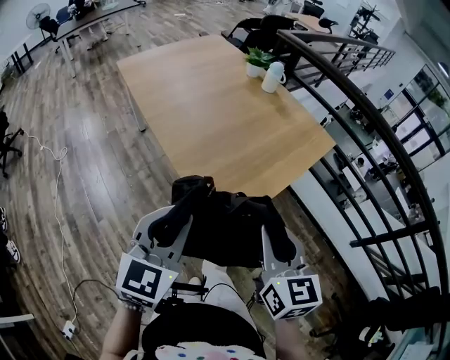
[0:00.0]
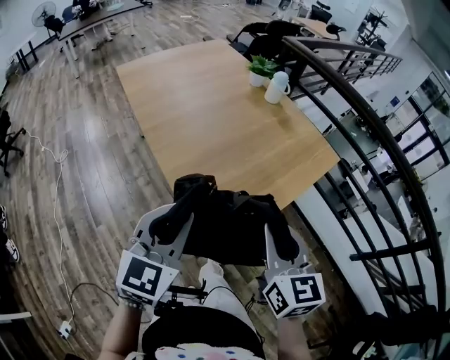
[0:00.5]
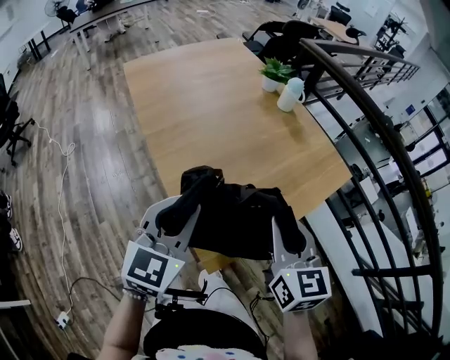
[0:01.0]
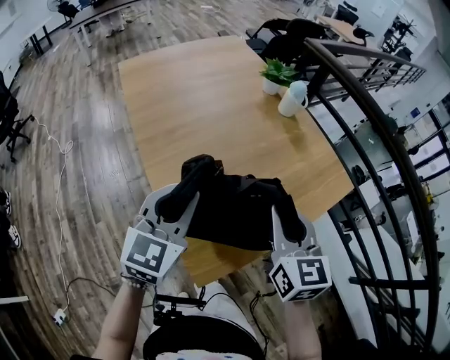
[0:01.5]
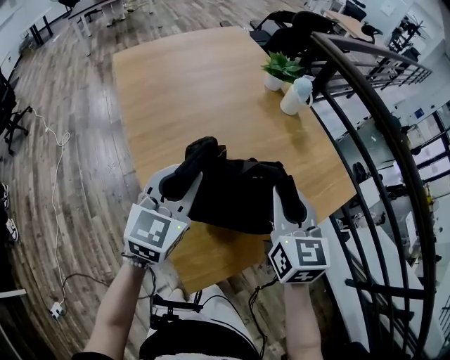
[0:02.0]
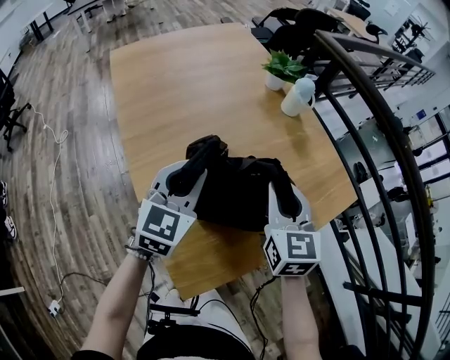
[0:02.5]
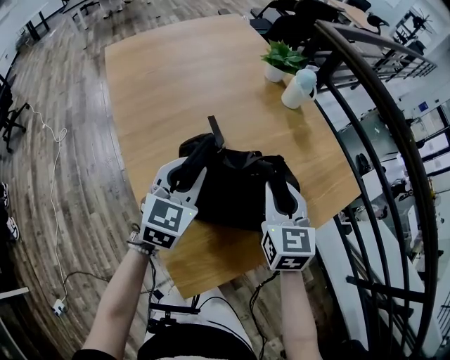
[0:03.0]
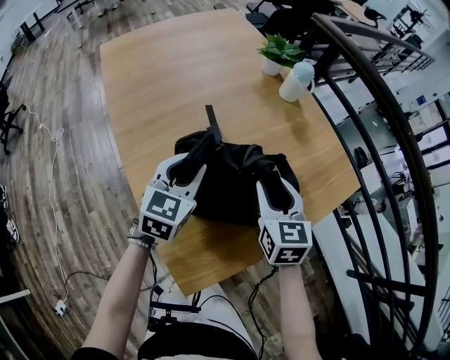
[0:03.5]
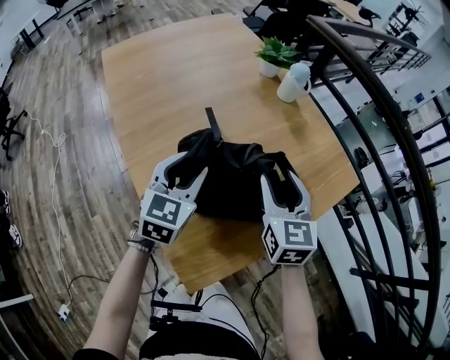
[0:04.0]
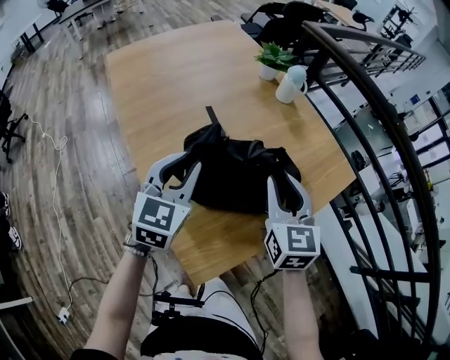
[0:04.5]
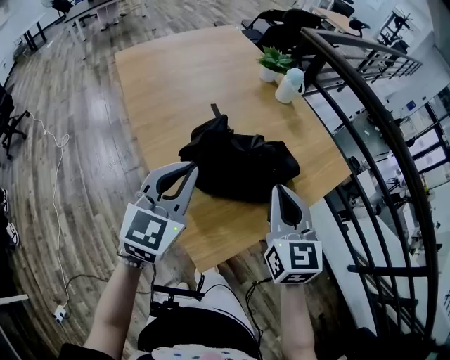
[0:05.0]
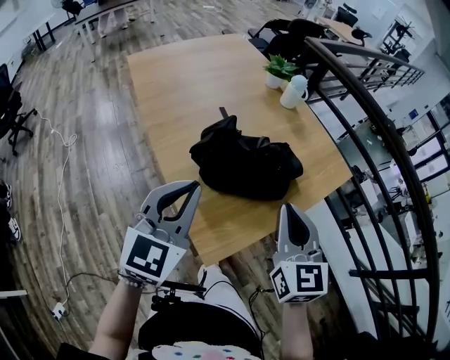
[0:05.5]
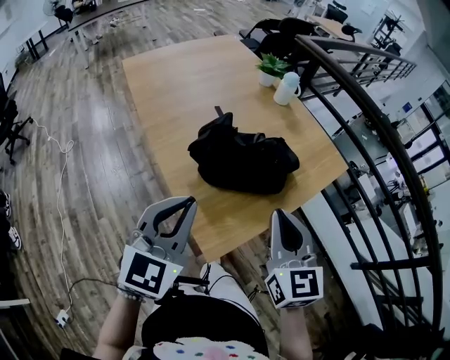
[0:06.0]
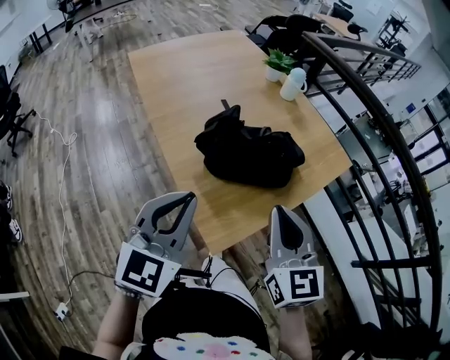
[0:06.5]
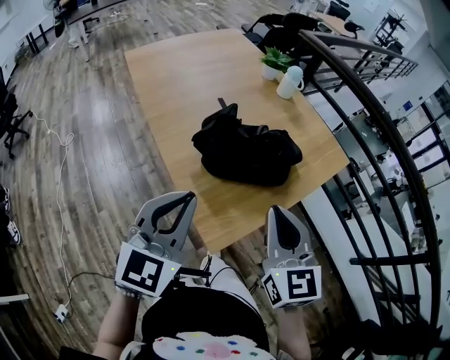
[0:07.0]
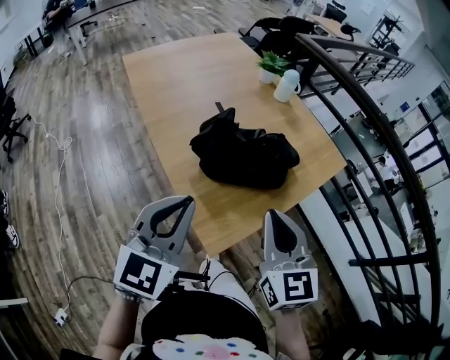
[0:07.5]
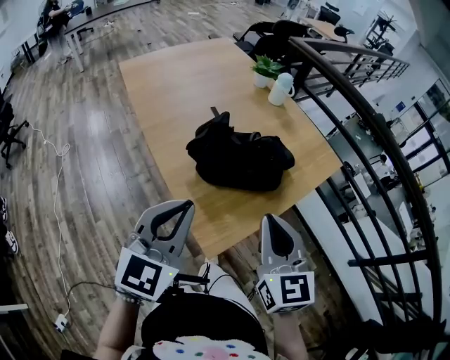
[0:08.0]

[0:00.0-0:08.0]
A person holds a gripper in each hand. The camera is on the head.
0:00.0 to 0:02.0: The two grippers go about 35 cm forward.
0:02.0 to 0:04.0: The grippers both shift downward by approximately 5 cm. The right gripper opens. Meanwhile the left gripper opens up.
0:04.0 to 0:06.0: Both grippers move backward and upward, some 30 cm. The left gripper closes up, while the right gripper closes up.
0:06.0 to 0:08.0: The grippers make only small movements.

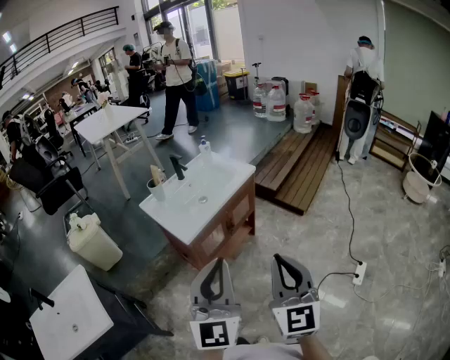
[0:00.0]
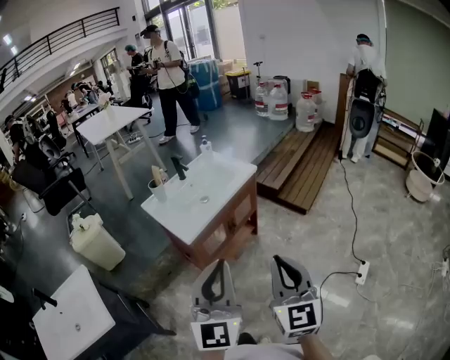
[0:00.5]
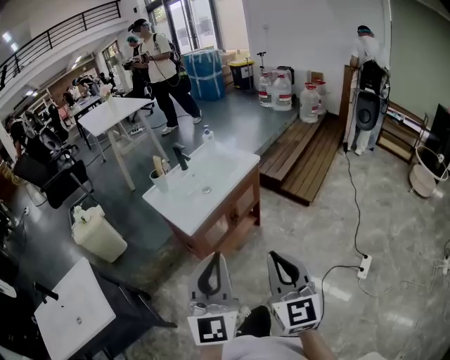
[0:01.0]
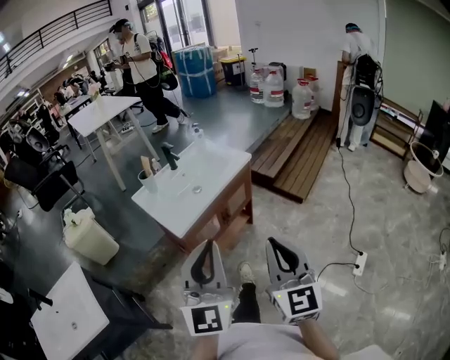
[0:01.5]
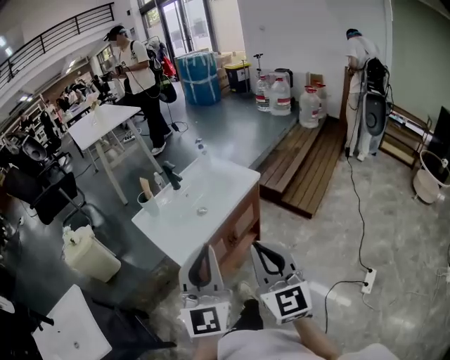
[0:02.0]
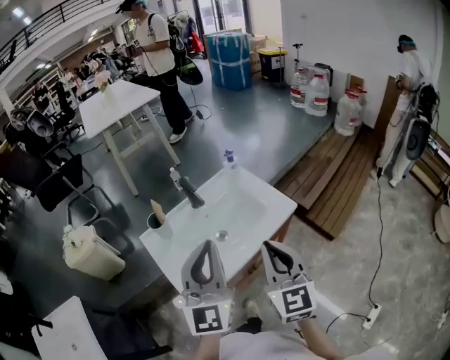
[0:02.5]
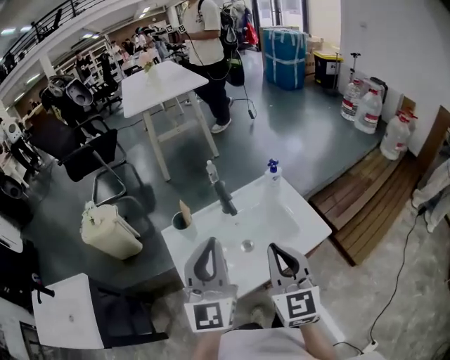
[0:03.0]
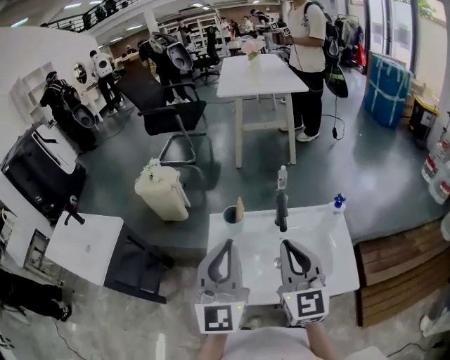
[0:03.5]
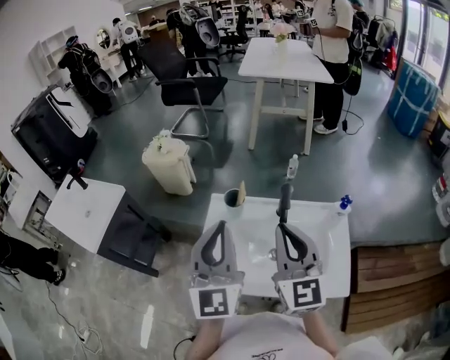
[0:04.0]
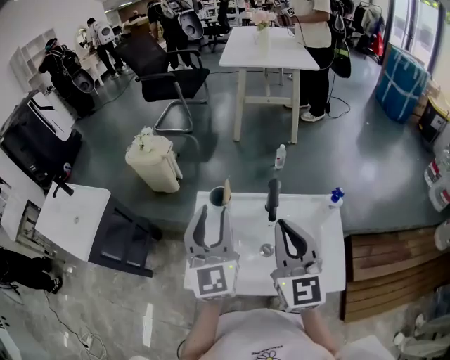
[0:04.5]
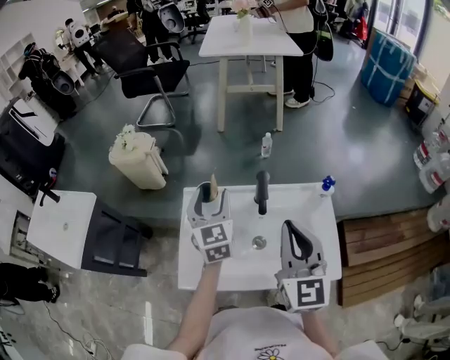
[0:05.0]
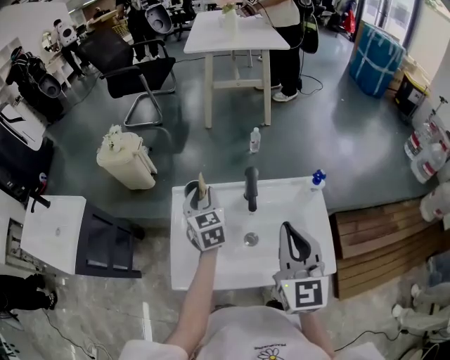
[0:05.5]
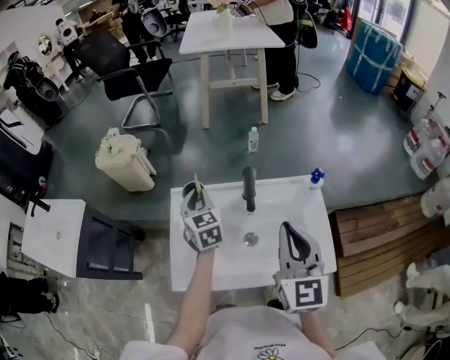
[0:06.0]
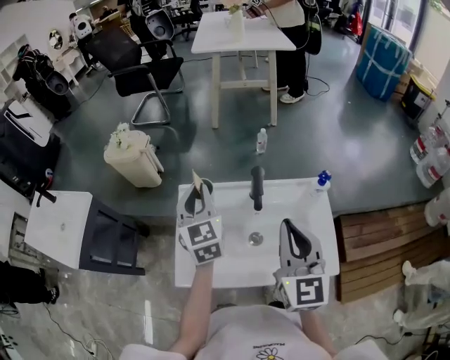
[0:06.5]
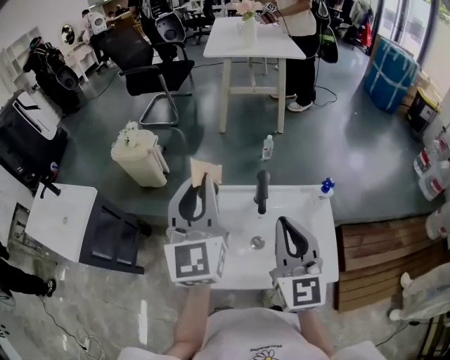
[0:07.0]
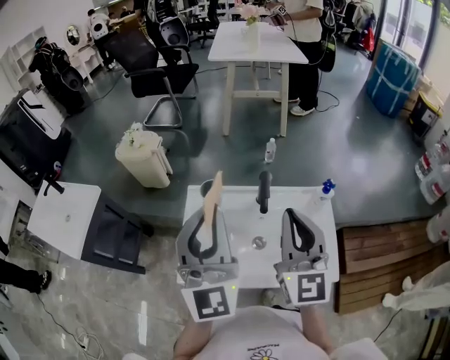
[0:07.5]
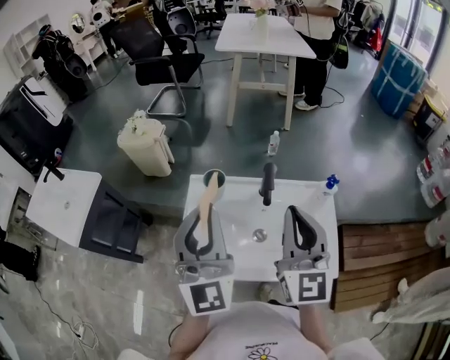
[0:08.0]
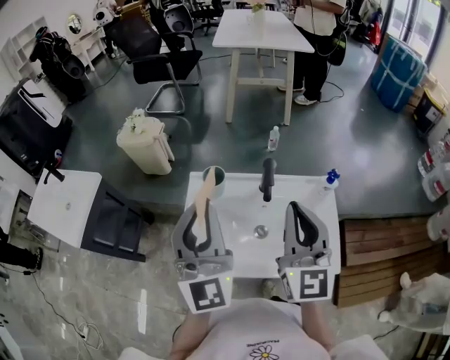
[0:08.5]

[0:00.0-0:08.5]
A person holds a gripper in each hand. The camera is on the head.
0:00.0 to 0:02.0: Both grippers move forward, approximately 20 cm.
0:02.0 to 0:04.0: The left gripper ends up about 35 cm from where it was, and rotates about 60 degrees; the right gripper ends up some 40 cm from where it was, and rotates some 50 degrees.
0:04.0 to 0:06.5: The right gripper moves to the right, about 10 cm. The left gripper heads forward and downward, covering about 20 cm, turns by roughly 20 degrees, and opens, then closes once more.
0:06.5 to 0:08.5: The right gripper shifts by roughly 5 cm, while the left gripper heads backward and upward, covering about 20 cm, and rotates about 30 degrees.

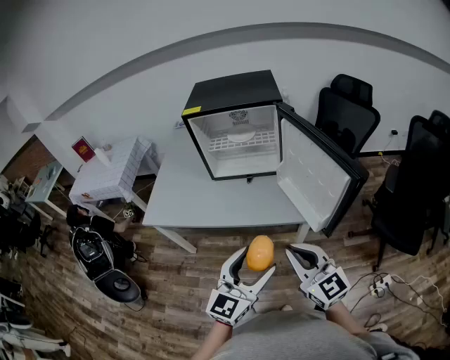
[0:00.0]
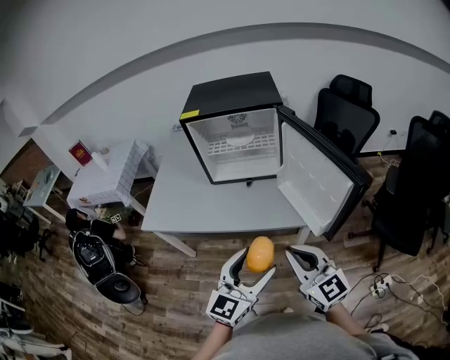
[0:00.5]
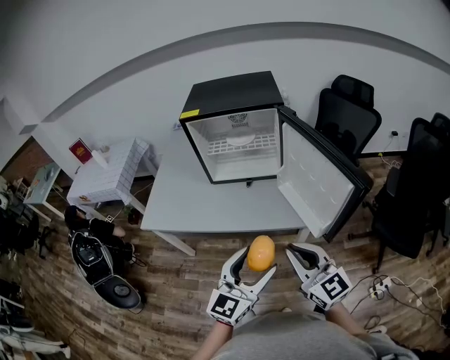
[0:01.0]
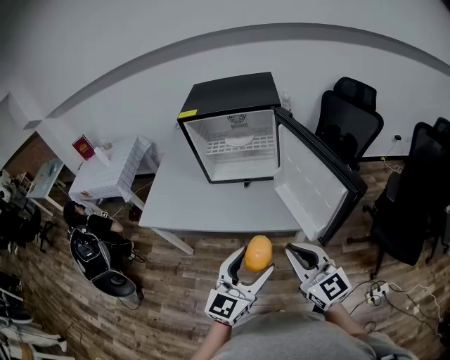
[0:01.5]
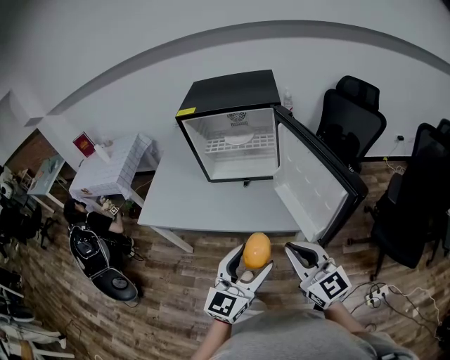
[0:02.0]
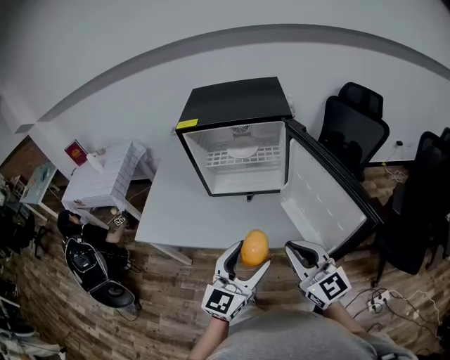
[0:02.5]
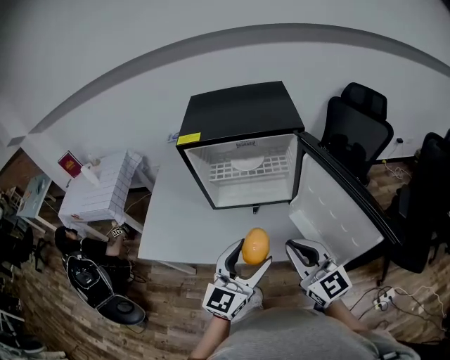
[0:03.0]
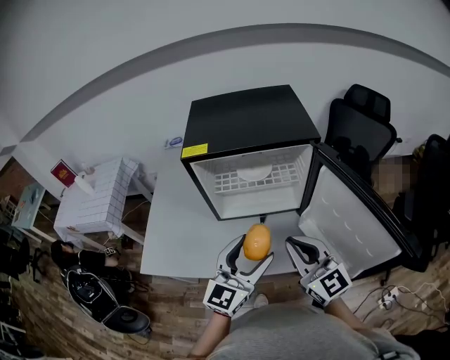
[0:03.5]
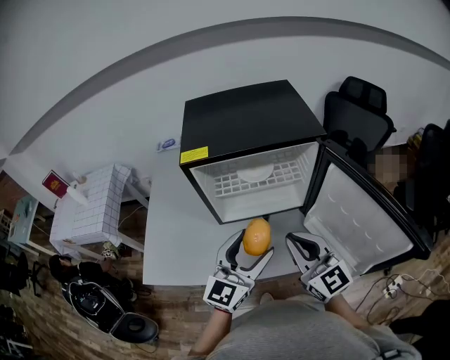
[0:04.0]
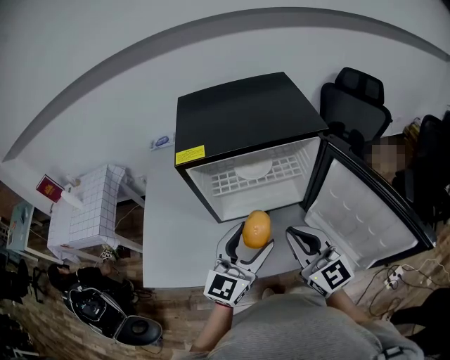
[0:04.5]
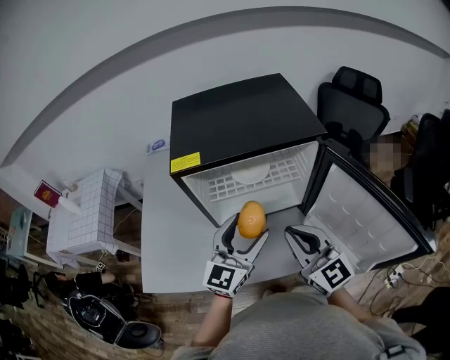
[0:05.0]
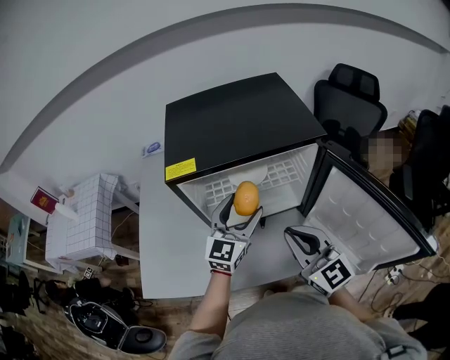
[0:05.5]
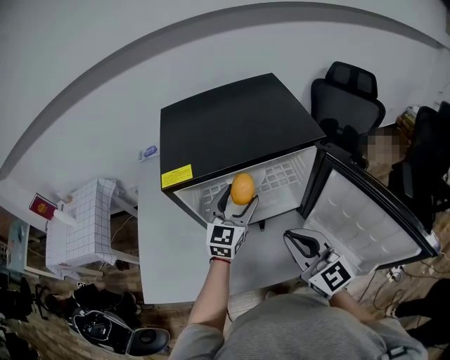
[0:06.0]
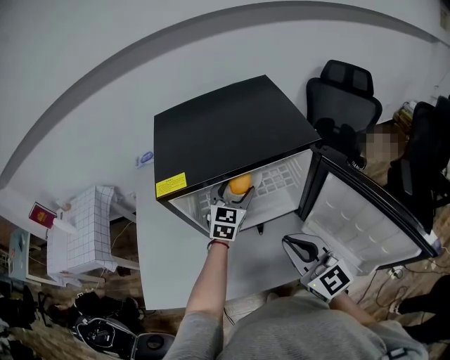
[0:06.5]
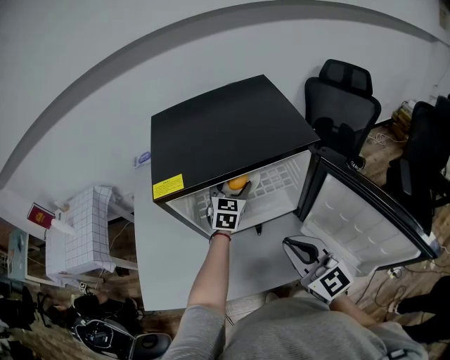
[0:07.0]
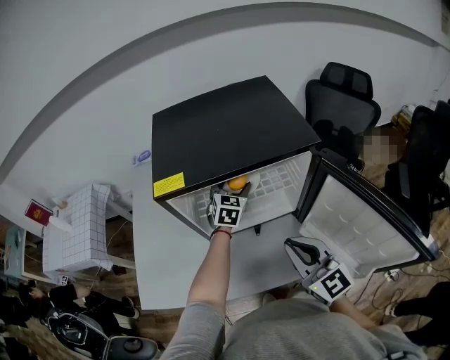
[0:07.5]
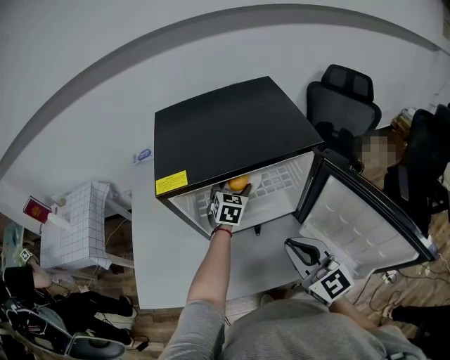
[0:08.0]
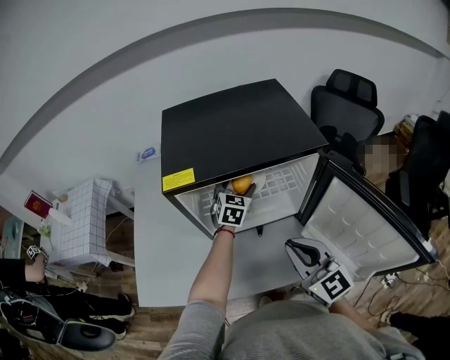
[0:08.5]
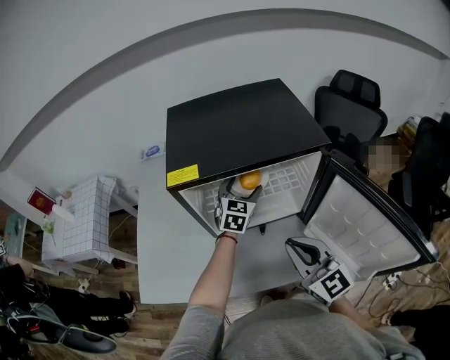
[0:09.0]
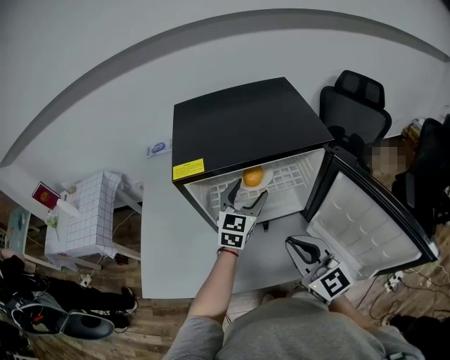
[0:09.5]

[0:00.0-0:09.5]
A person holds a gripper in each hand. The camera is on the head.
0:00.0 to 0:02.0: The left gripper ends up roughly 5 cm from where it was; the right gripper moves roughly 5 cm.
0:02.0 to 0:04.0: The two grippers go roughly 30 cm forward and to the left.
0:04.0 to 0:05.5: The left gripper moves forward, about 15 cm. The right gripper is displaced forward by about 5 cm.
0:05.5 to 0:07.5: The left gripper is displaced forward and downward by about 20 cm, and rotates approximately 30 degrees.
0:07.5 to 0:09.5: The left gripper shifts some 10 cm backward and upward.

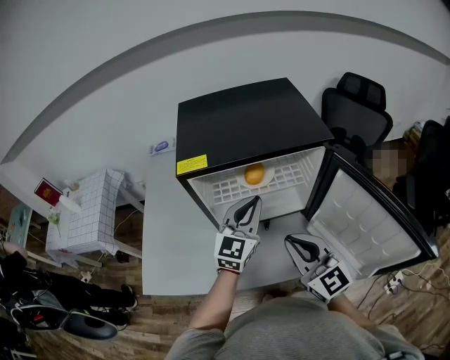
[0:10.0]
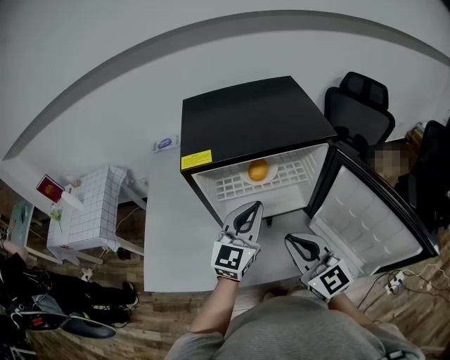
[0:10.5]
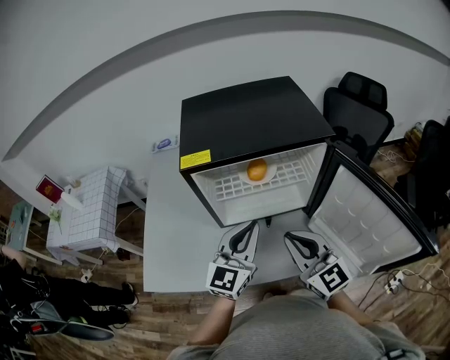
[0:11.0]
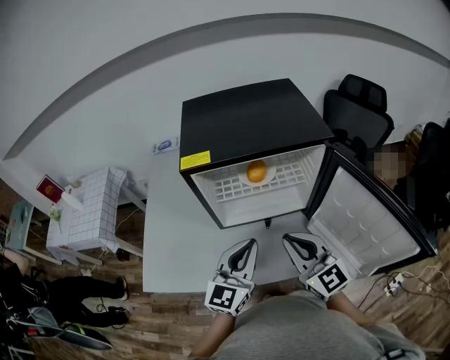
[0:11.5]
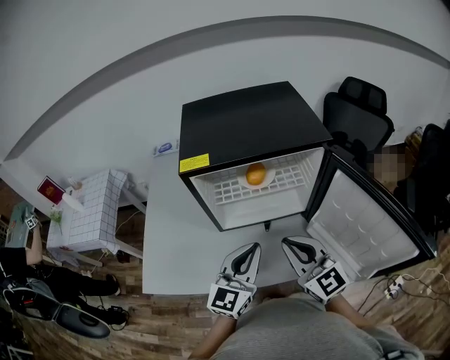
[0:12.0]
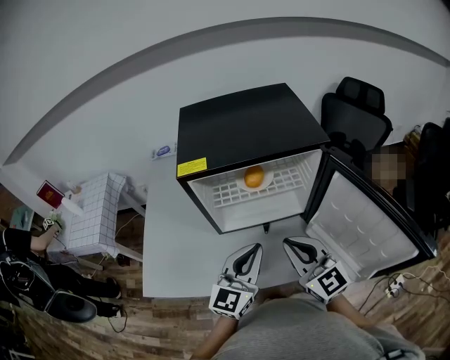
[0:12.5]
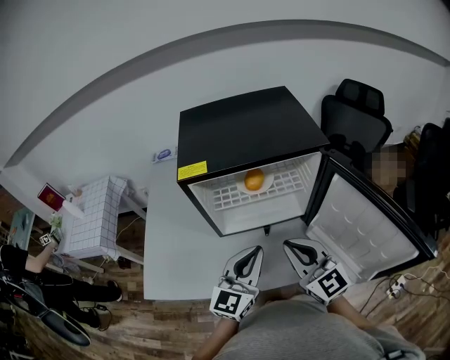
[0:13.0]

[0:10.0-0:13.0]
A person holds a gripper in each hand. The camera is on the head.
0:10.0 to 0:11.5: The left gripper travels backward by approximately 15 cm.
0:11.5 to 0:13.0: The grippers make only small movements.
